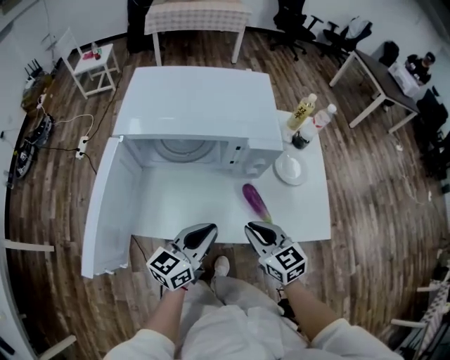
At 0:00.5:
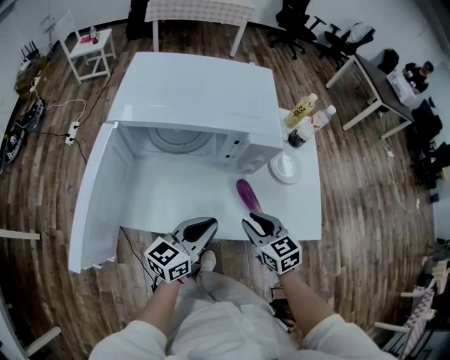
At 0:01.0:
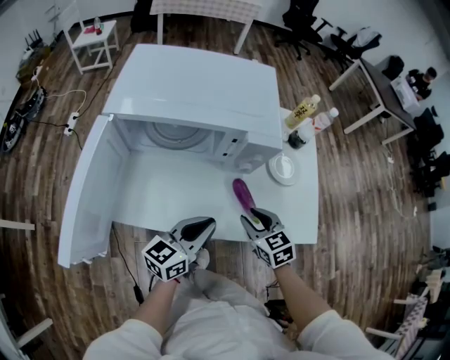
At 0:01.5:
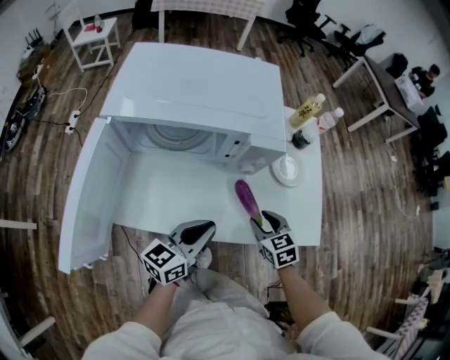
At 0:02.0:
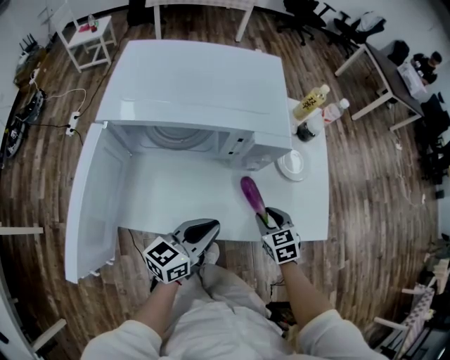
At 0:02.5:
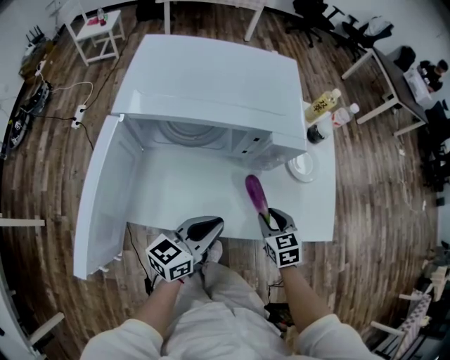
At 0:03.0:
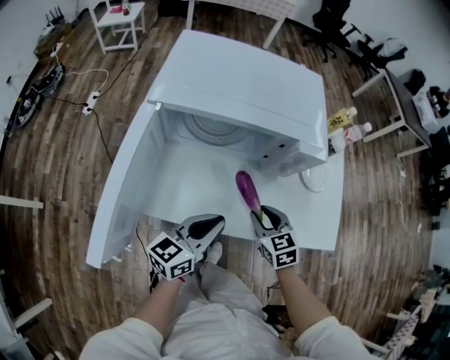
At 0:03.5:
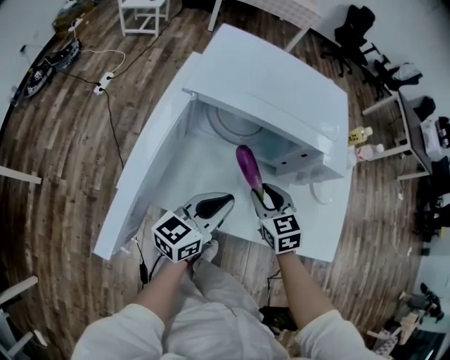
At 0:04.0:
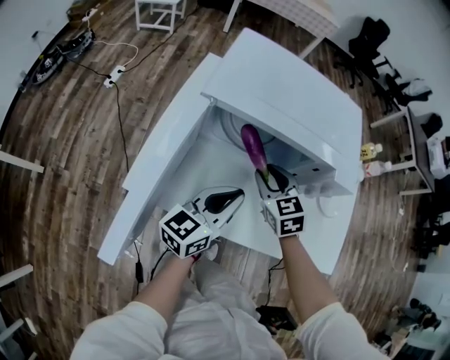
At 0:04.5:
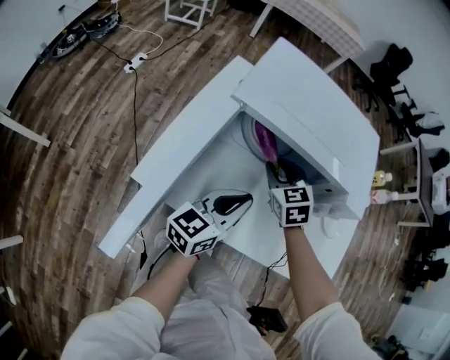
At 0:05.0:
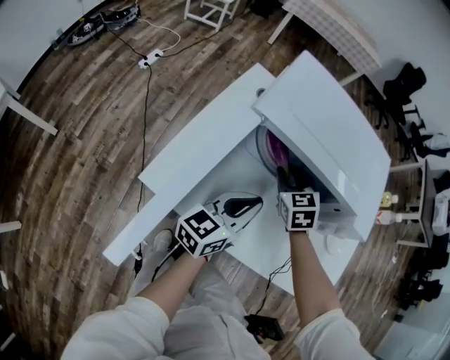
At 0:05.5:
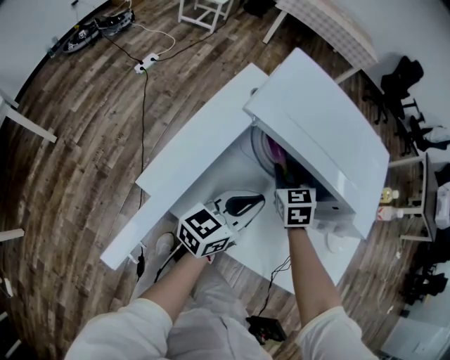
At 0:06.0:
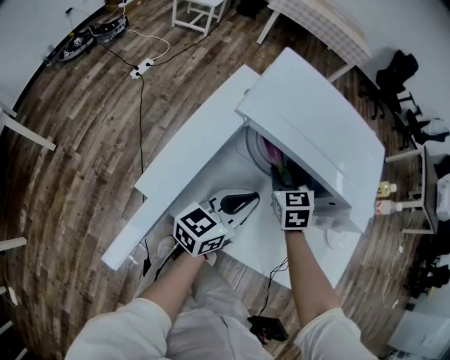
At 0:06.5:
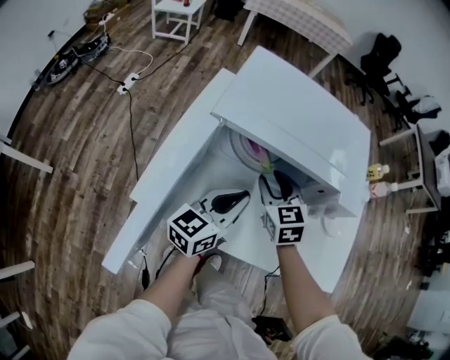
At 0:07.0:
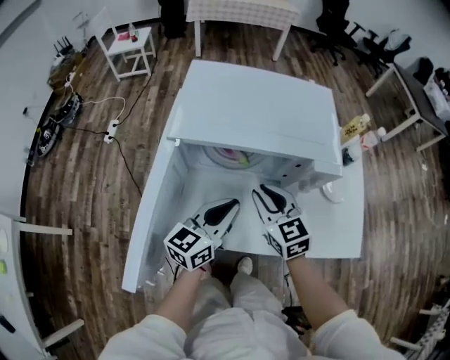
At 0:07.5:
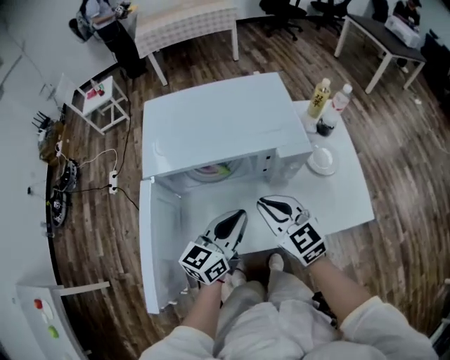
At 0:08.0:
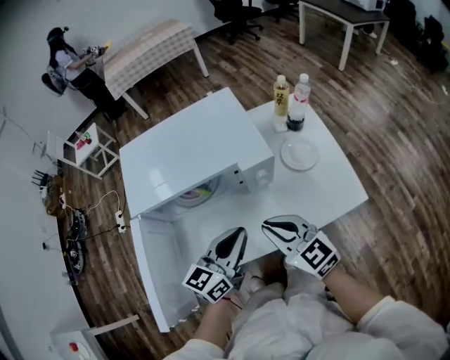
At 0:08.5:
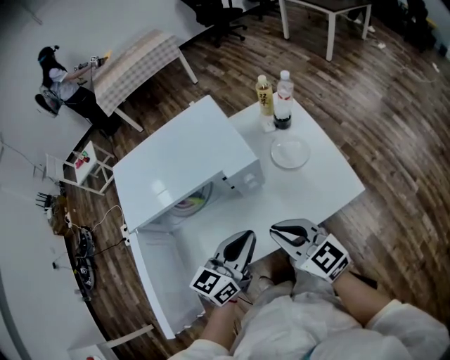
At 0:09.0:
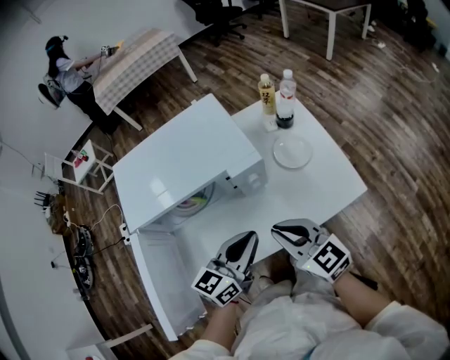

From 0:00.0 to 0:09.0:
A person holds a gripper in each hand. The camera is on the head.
From 0:00.0 to 0:02.0: The right gripper goes about 15 cm downward, to the right and forward, swivels some 30 degrees, and opens.
From 0:02.0 to 0:04.5: The left gripper is displaced to the left and forward by roughly 15 cm. Meanwhile the right gripper heads to the left and forward, covering some 30 cm, and swivels roughly 20 degrees.
From 0:04.5 to 0:07.0: The right gripper heads backward and upward, covering roughly 10 cm.
From 0:07.0 to 0:09.0: The left gripper travels to the right and upward by some 15 cm, and changes its angle by roughly 20 degrees. Meanwhile the right gripper travels to the right, backward and upward by about 20 cm.

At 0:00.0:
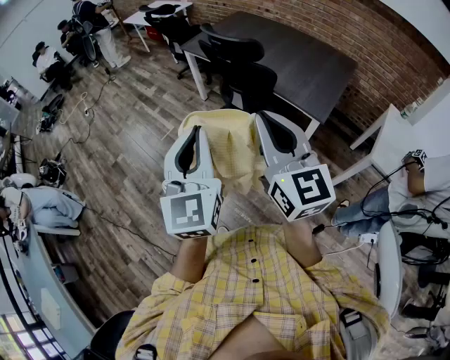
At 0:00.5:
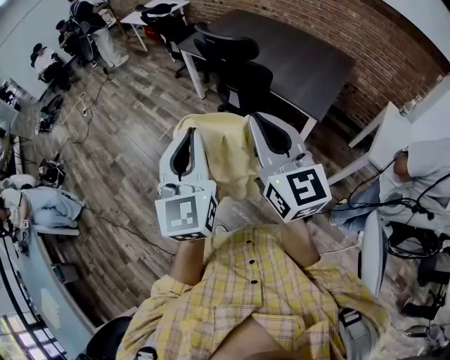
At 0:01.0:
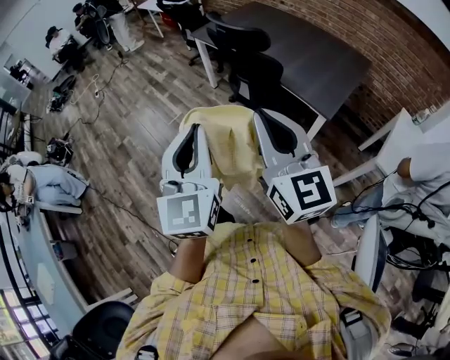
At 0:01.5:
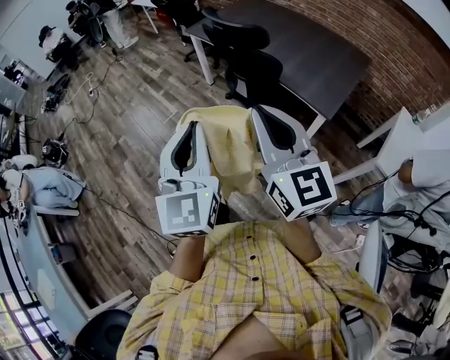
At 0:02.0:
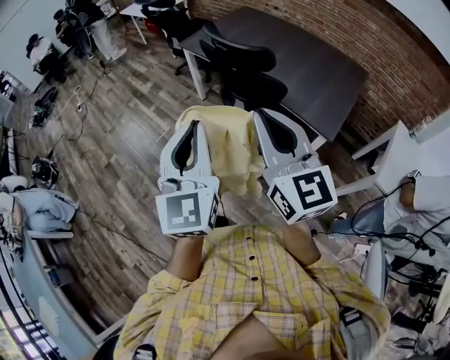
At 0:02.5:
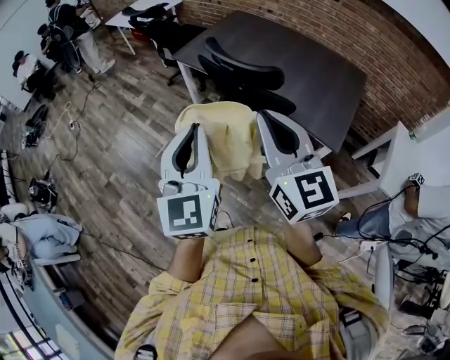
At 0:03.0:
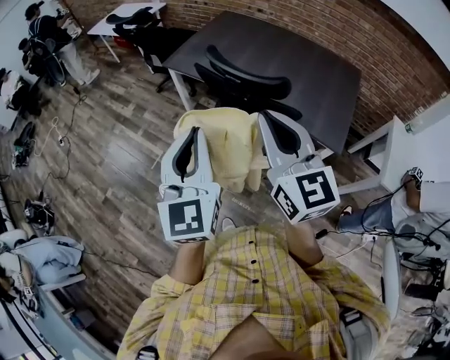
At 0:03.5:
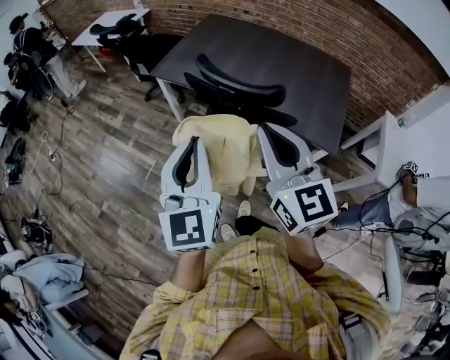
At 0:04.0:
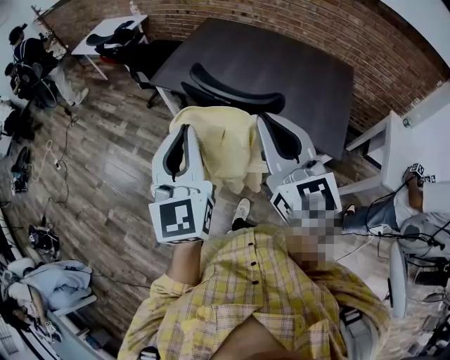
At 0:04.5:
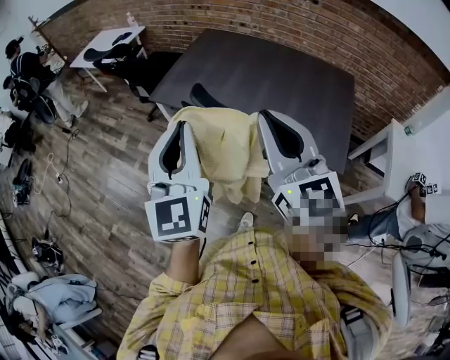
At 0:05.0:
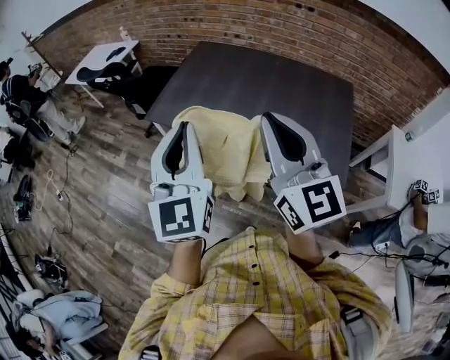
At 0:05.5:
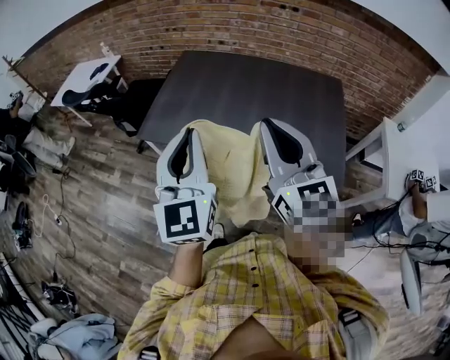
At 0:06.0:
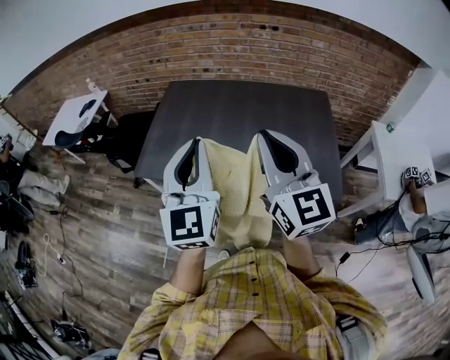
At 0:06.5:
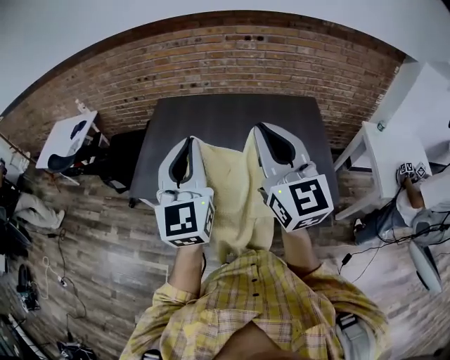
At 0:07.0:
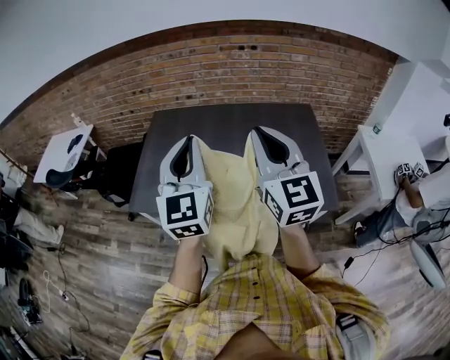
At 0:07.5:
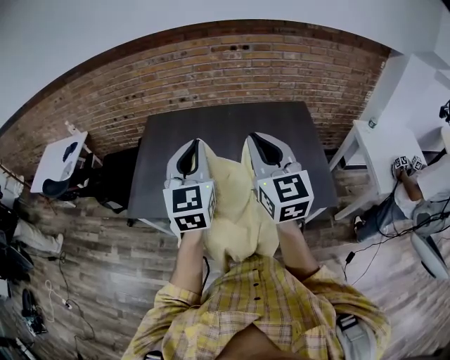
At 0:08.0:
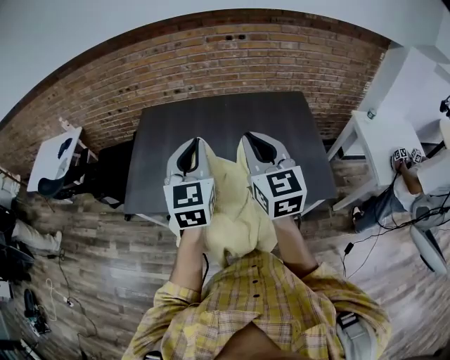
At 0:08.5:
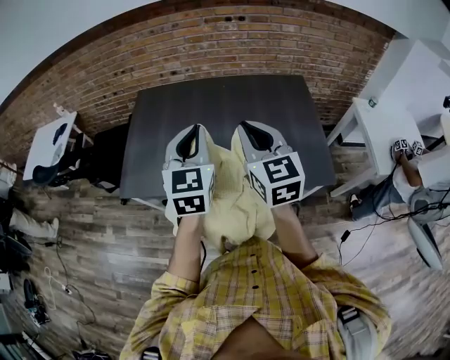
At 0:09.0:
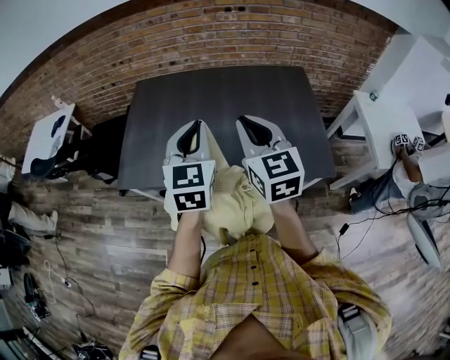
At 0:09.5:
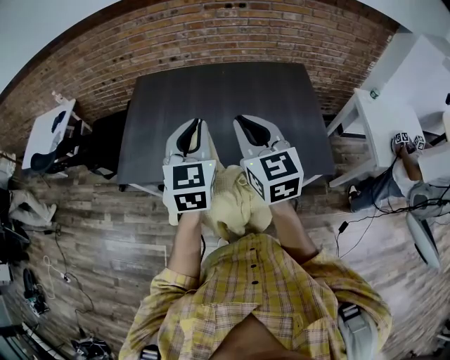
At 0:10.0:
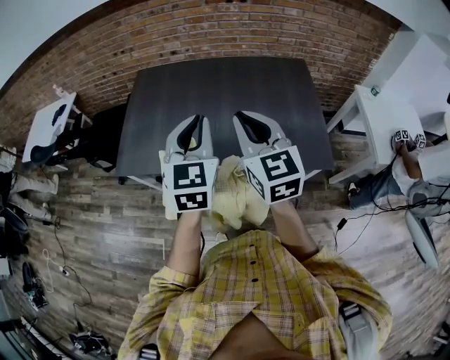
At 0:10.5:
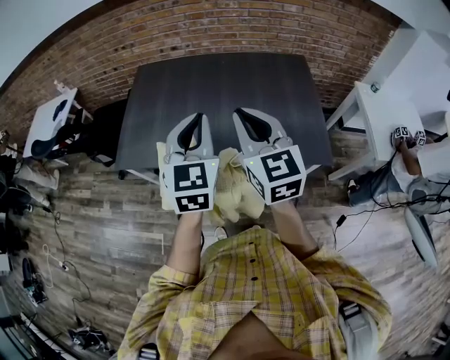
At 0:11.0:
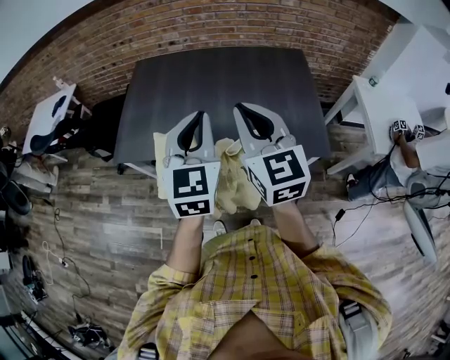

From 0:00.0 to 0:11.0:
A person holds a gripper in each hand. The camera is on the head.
From 0:00.0 to 0:02.0: The two grippers go about 15 cm forward.
From 0:02.0 to 0:03.5: The two grippers go about 20 cm forward.
From 0:03.5 to 0:05.5: Both grippers travel together forward, approximately 25 cm.
From 0:05.5 to 0:07.5: Both grippers move forward, approximately 15 cm. The right gripper changes its angle by about 20 degrees.
From 0:07.5 to 0:09.0: Both grippers move downward, roughly 5 cm.
From 0:09.0 to 0:11.0: Both grippers move backward, roughly 10 cm.

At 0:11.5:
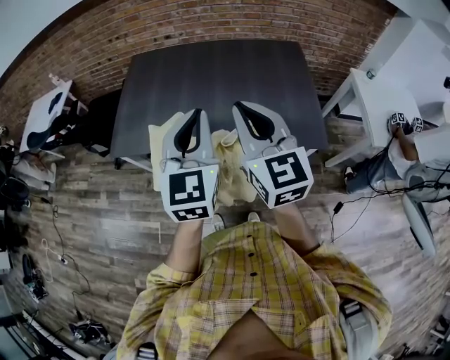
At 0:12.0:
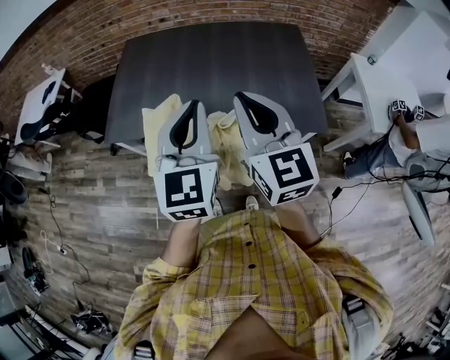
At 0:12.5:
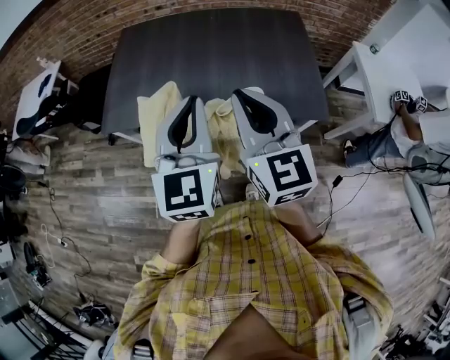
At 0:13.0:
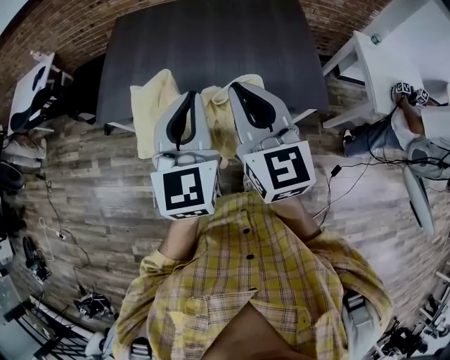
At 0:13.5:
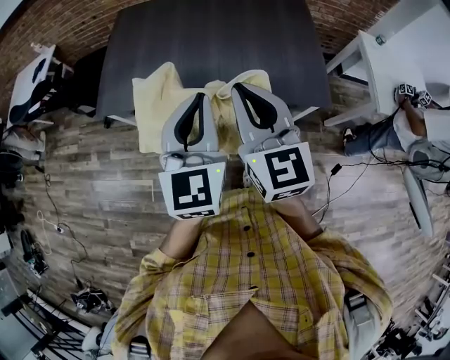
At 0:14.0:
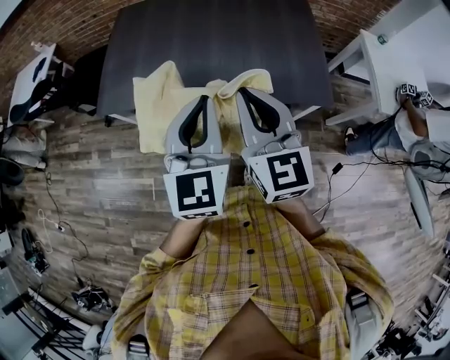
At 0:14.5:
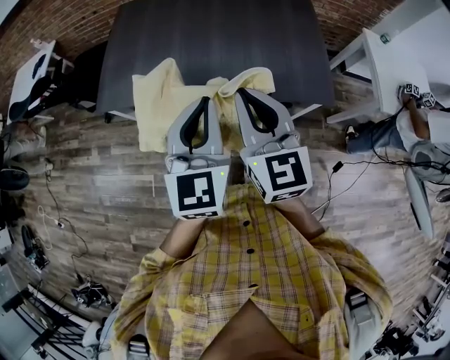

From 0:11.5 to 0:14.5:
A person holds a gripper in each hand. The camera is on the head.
From 0:11.5 to 0:13.0: The left gripper moves about 5 cm; the right gripper ends up about 5 cm from where it was.
From 0:13.0 to 0:14.5: The grippers make only small movements.

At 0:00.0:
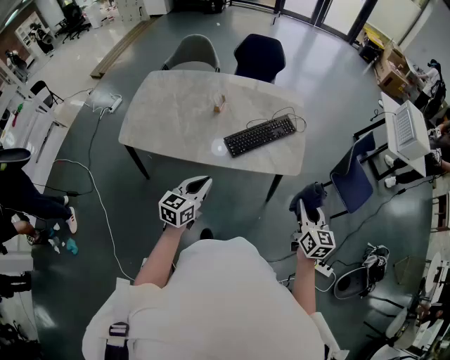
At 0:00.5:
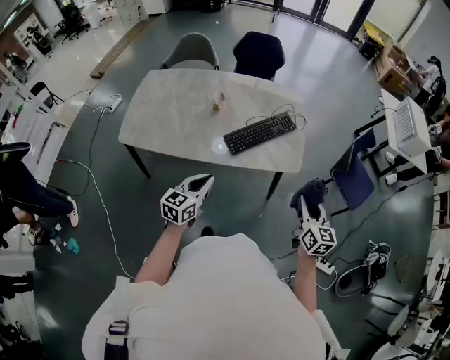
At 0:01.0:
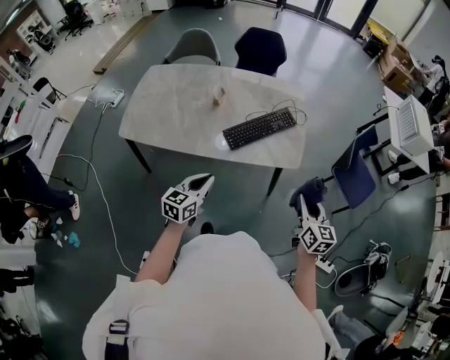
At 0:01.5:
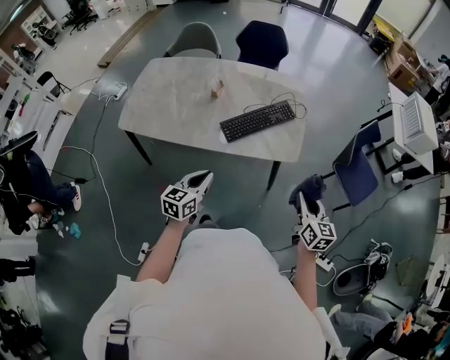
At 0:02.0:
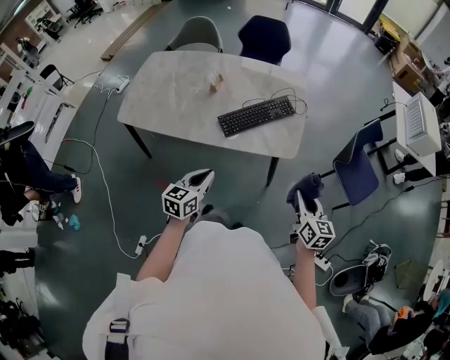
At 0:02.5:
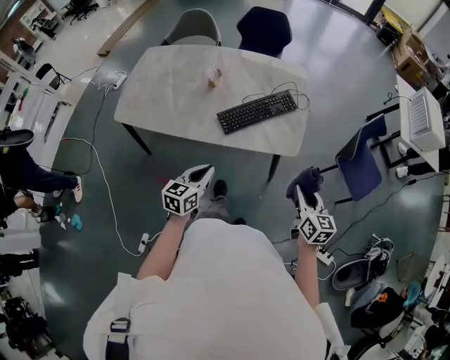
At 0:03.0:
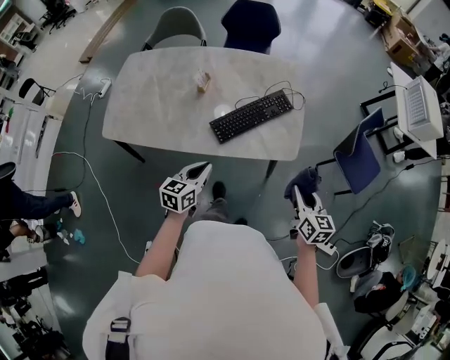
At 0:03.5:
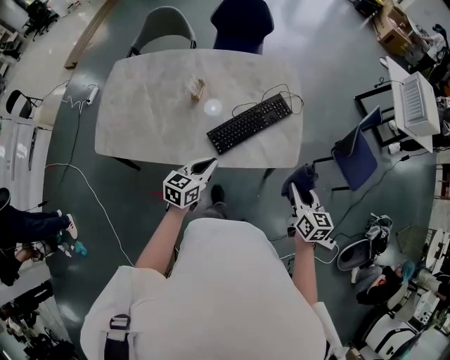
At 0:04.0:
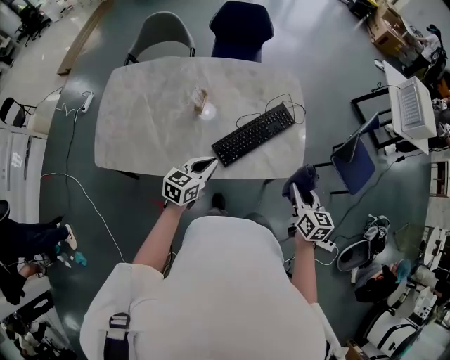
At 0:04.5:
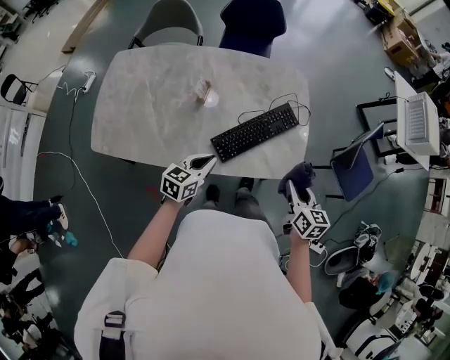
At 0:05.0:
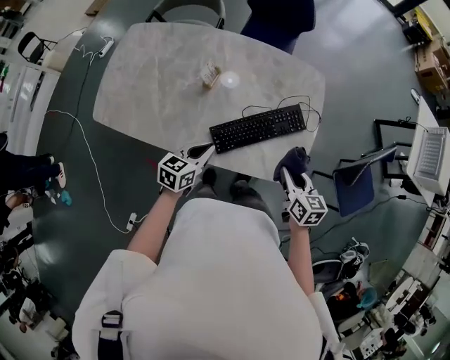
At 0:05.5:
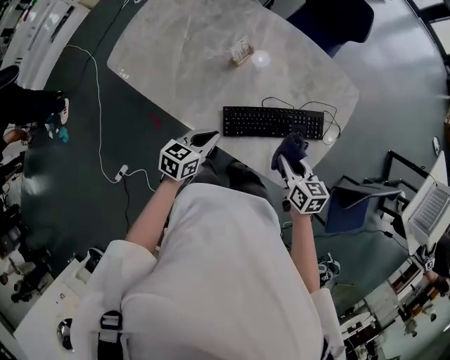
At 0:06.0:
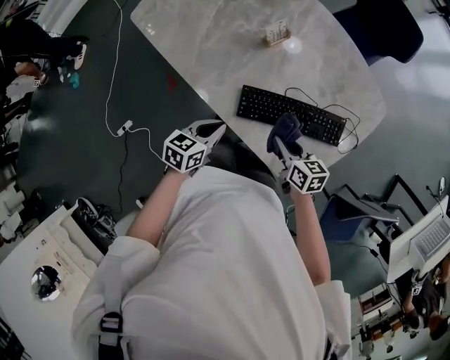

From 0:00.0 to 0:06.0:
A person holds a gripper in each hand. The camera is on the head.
From 0:00.0 to 0:02.0: Both grippers travel together to the right, approximately 10 cm.
From 0:02.0 to 0:04.0: Both grippers travel together forward and to the left, about 25 cm. The left gripper swivels some 20 degrees.
From 0:04.0 to 0:06.0: The right gripper ends up about 25 cm from where it was, and swivels approximately 60 degrees; the left gripper heads downward, covering about 10 cm, and turns by about 50 degrees.
